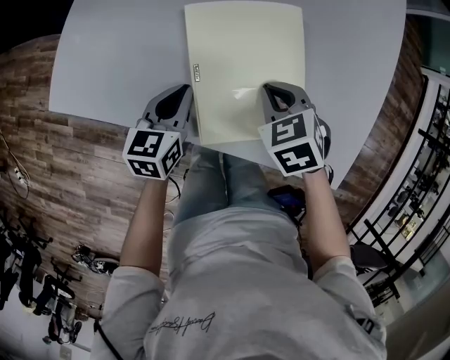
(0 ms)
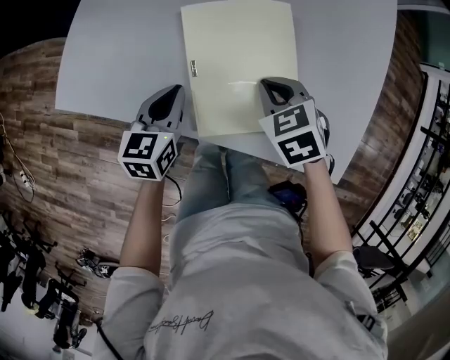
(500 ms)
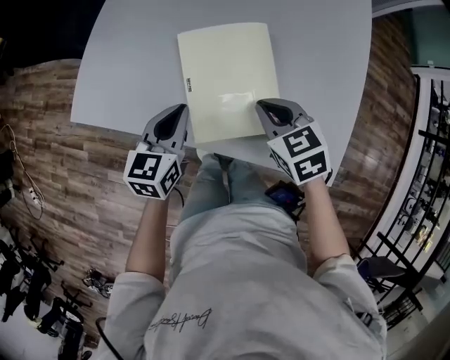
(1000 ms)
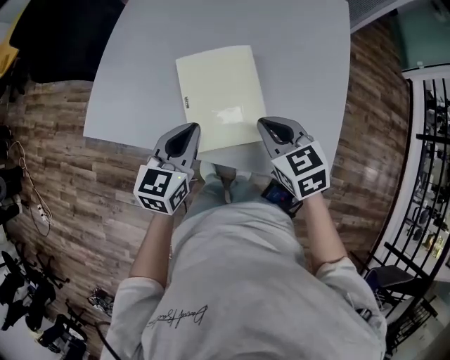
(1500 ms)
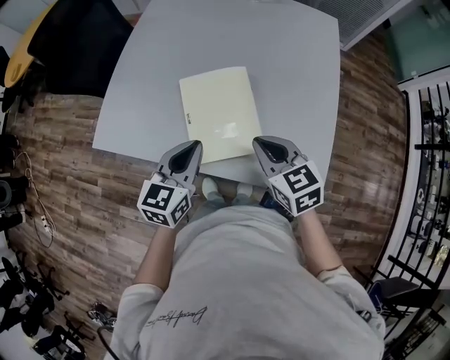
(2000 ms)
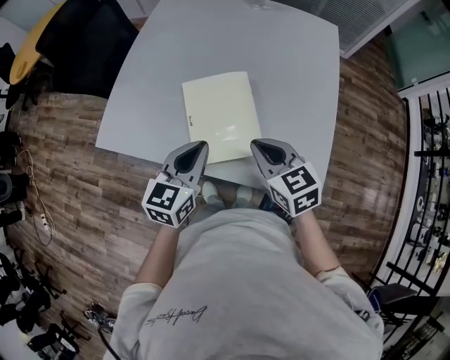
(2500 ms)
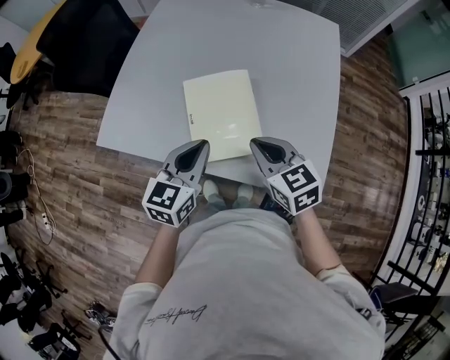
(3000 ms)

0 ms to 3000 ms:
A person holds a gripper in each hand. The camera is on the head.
0 ms to 1500 ms: The two grippers go roughly 15 cm upward. The right gripper rotates roughly 30 degrees.
1500 ms to 3000 ms: The left gripper heads upward, covering about 5 cm, while the right gripper shifts by about 5 cm.

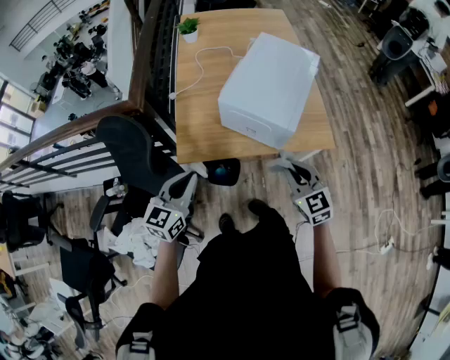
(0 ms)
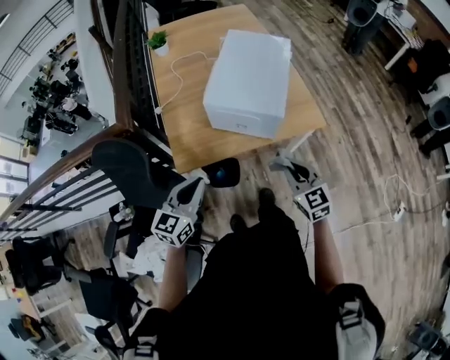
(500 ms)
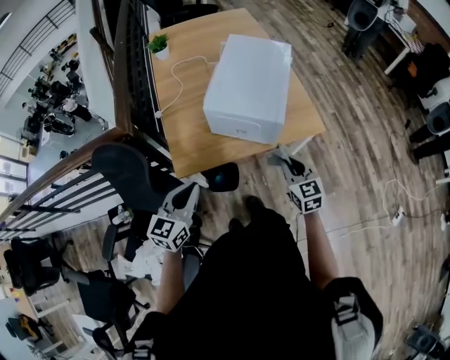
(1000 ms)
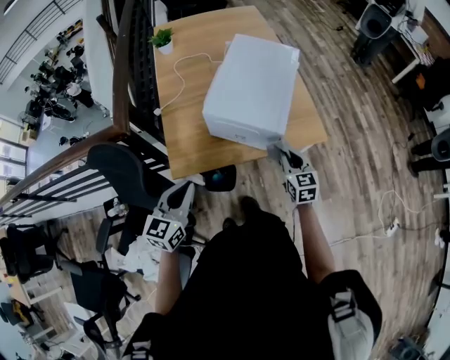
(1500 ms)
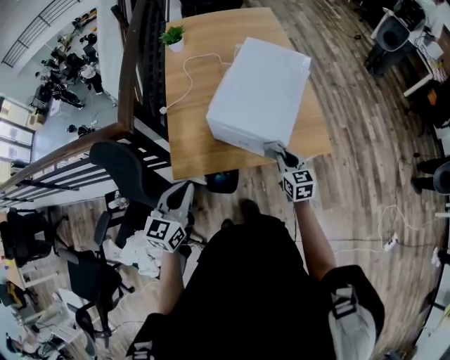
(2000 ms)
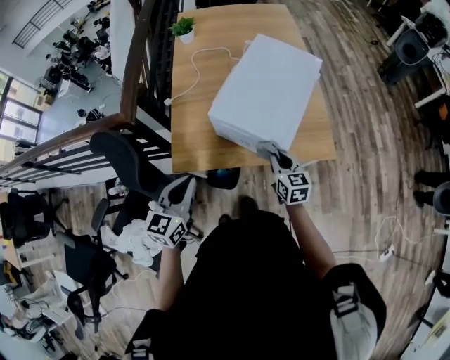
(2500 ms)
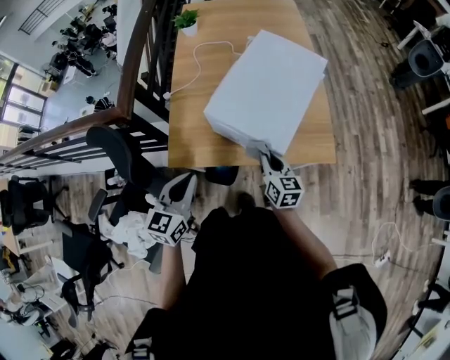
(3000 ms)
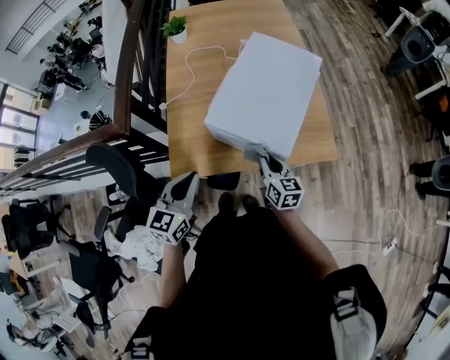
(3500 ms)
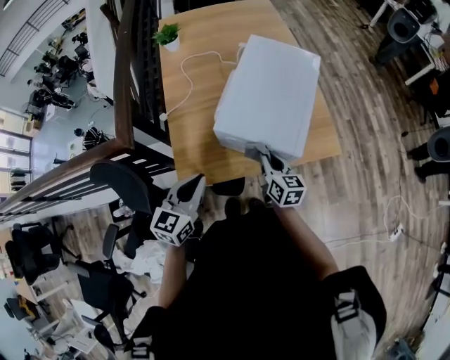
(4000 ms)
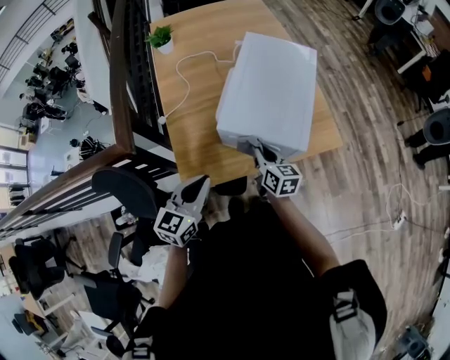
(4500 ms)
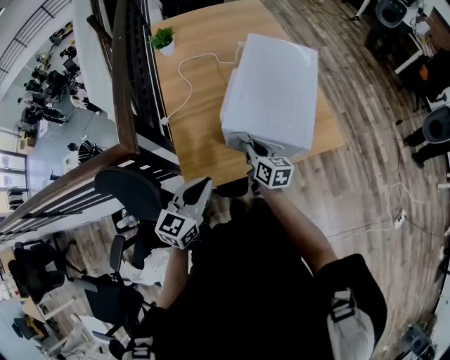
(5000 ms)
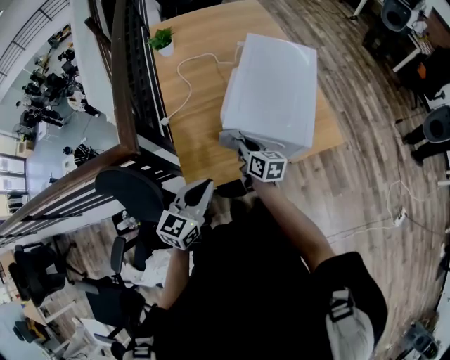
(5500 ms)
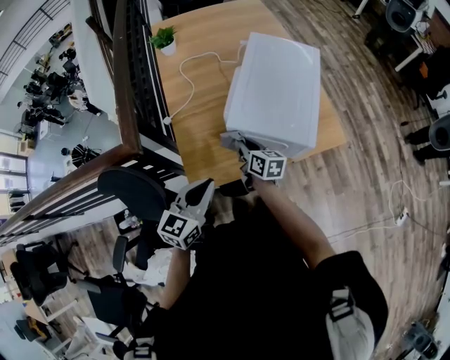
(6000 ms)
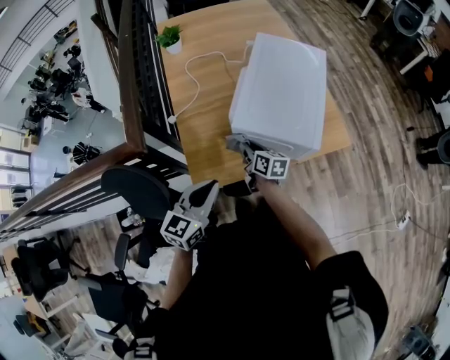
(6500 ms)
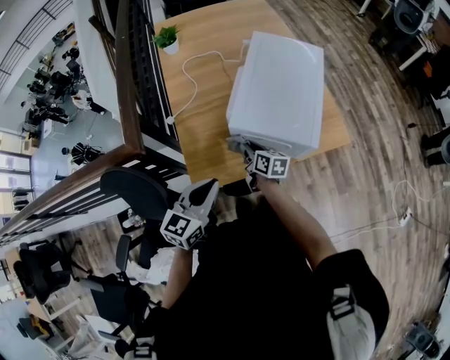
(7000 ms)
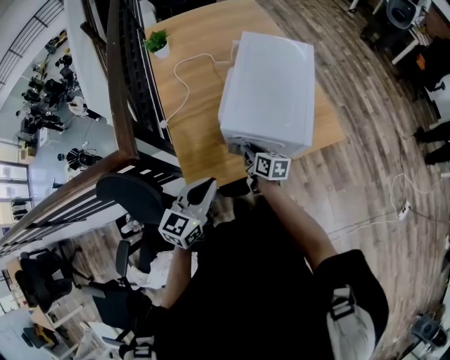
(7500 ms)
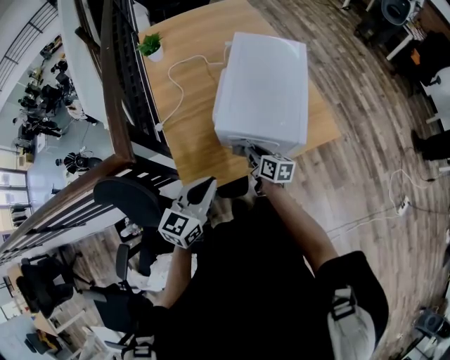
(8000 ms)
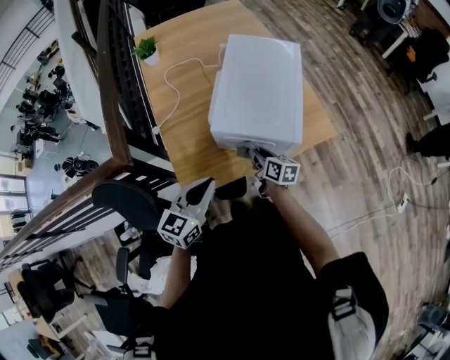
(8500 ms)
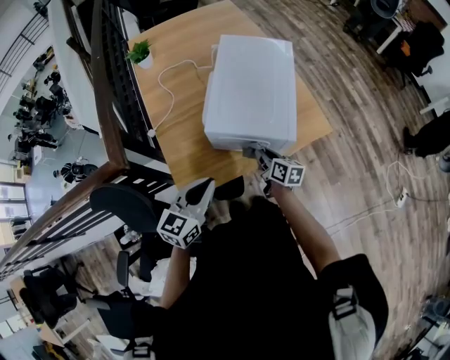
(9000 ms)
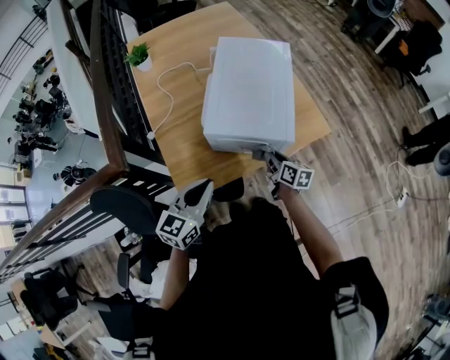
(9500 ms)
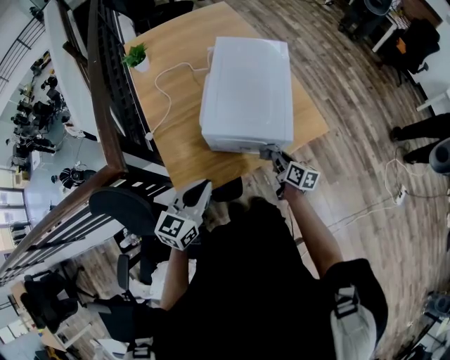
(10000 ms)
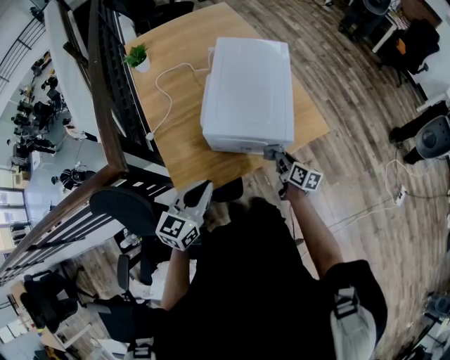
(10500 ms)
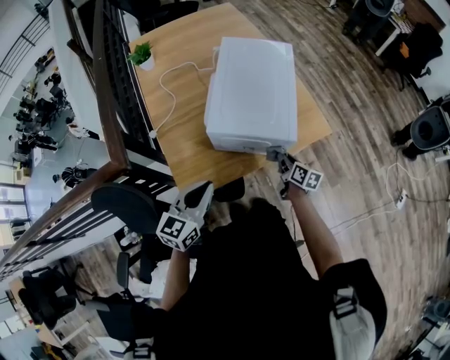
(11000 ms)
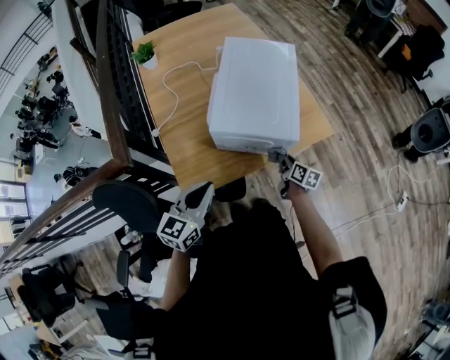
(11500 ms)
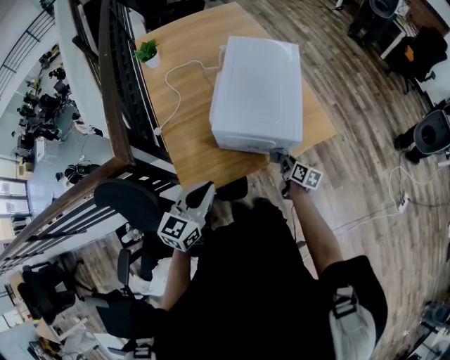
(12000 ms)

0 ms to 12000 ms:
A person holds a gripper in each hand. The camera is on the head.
0 ms to 2000 ms: The right gripper moves forward and downward, some 15 cm.
2000 ms to 4000 ms: The left gripper travels forward by approximately 10 cm. The right gripper shifts about 10 cm to the left, and swivels about 20 degrees.
4000 ms to 6000 ms: The right gripper heads to the left, covering some 15 cm.
6000 ms to 8000 ms: The right gripper travels to the right by roughly 5 cm.
8000 ms to 10000 ms: The right gripper heads to the right, covering roughly 15 cm.
10000 ms to 12000 ms: The right gripper shifts roughly 5 cm downward.

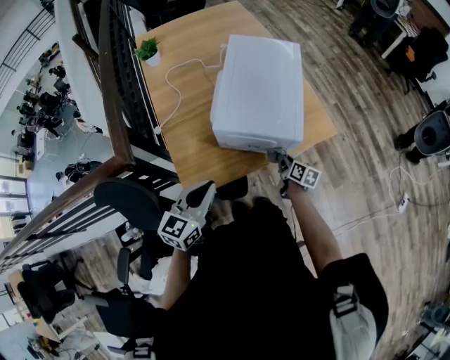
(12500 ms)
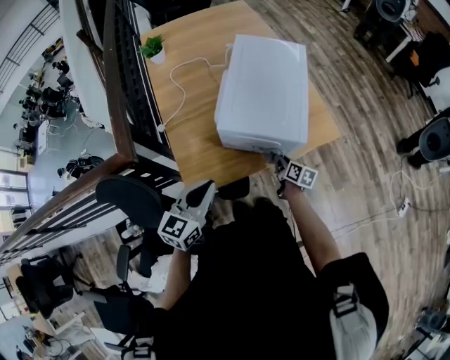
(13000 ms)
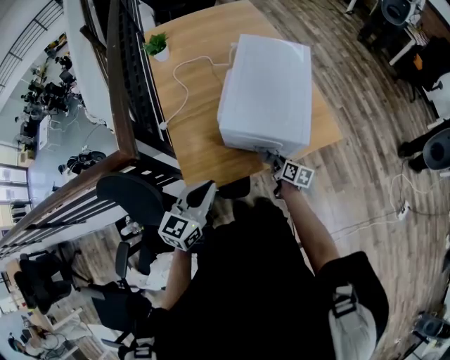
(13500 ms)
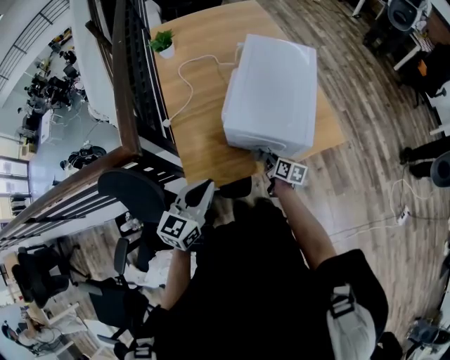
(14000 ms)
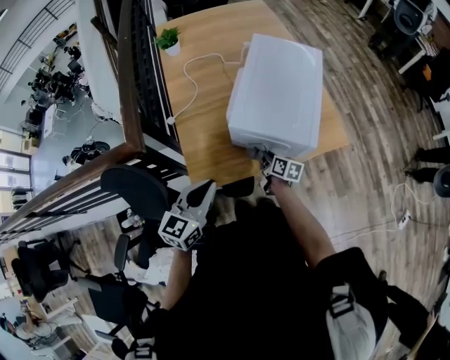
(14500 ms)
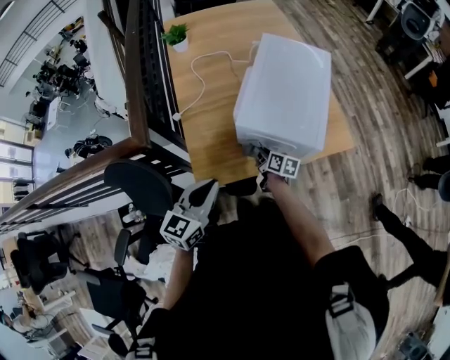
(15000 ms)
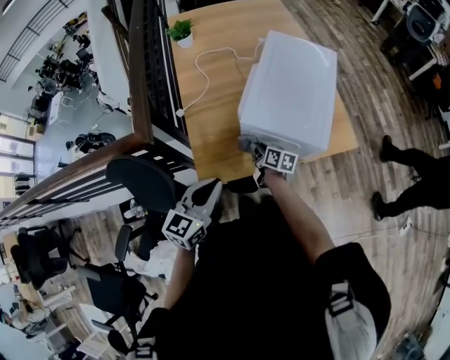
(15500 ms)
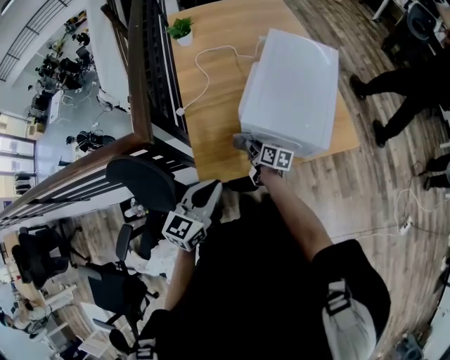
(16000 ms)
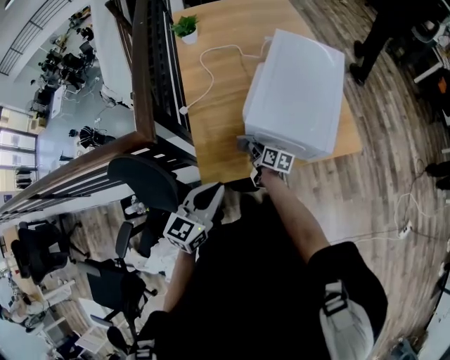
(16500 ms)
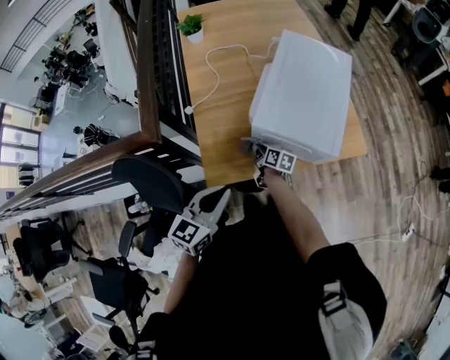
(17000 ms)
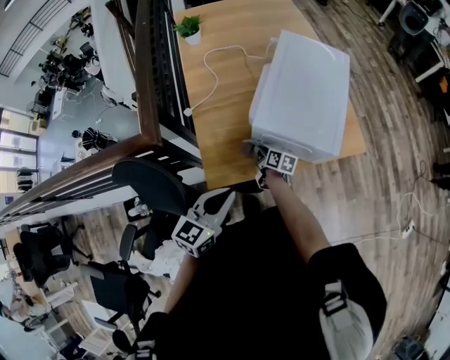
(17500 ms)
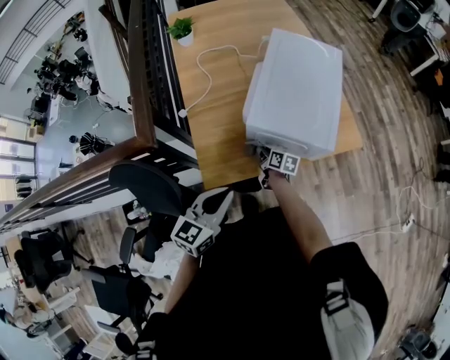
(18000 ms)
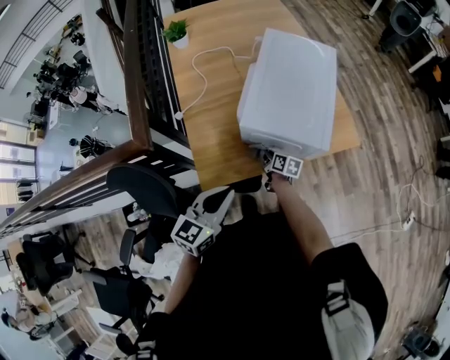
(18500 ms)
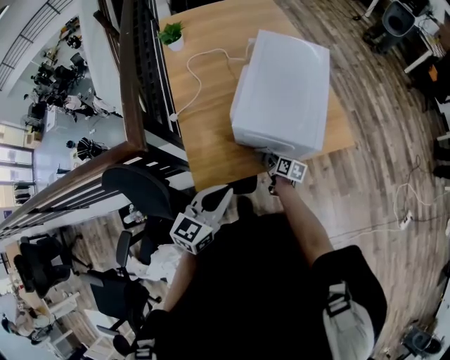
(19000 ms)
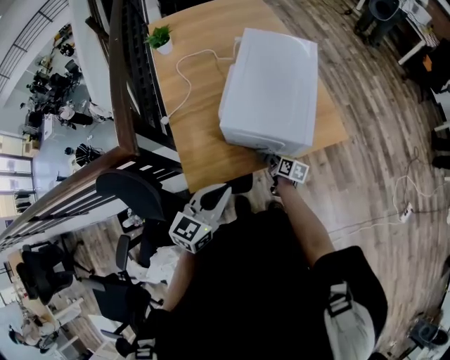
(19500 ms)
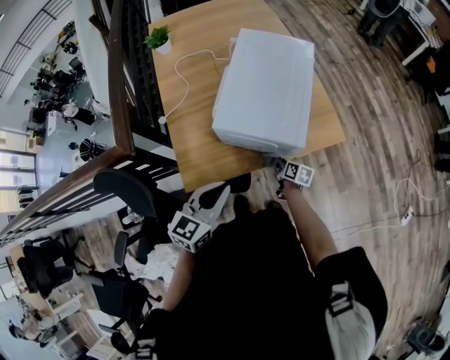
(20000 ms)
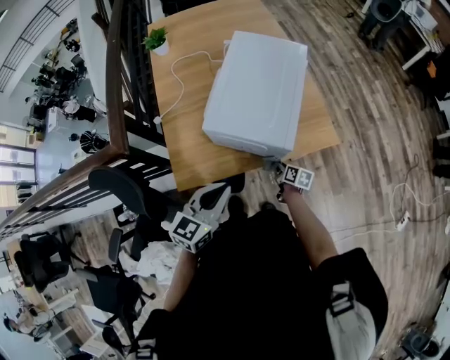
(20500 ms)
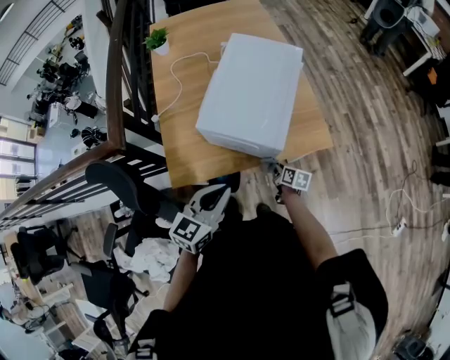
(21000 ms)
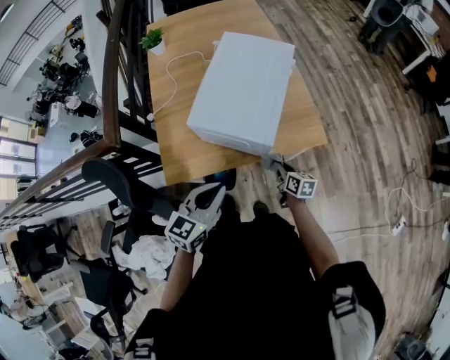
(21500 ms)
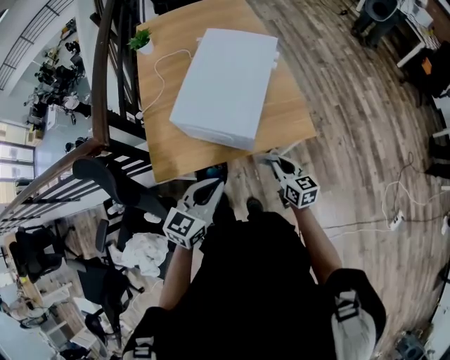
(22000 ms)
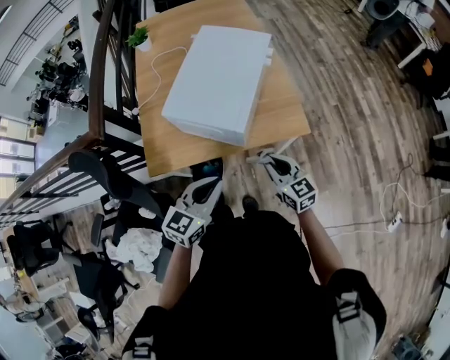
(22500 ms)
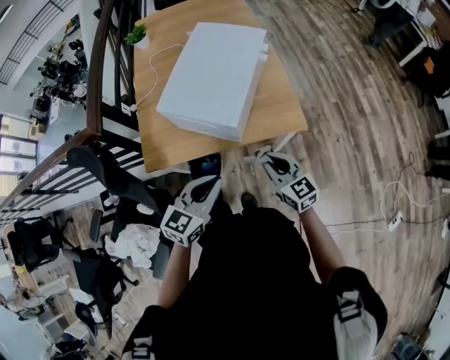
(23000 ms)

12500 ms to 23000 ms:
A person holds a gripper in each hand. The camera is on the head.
12500 ms to 14500 ms: The right gripper shifts roughly 15 cm to the left.
14500 ms to 16500 ms: The right gripper travels to the left by about 10 cm.
16500 ms to 19000 ms: The left gripper travels to the right by about 5 cm, while the right gripper travels to the right by approximately 10 cm.
19000 ms to 21000 ms: Both grippers move to the right, approximately 15 cm.
21000 ms to 23000 ms: The right gripper shifts about 20 cm upward, and rotates around the line of its fingers by some 50 degrees, counterclockwise from behind. Meanwhile the left gripper is displaced to the right by about 15 cm.

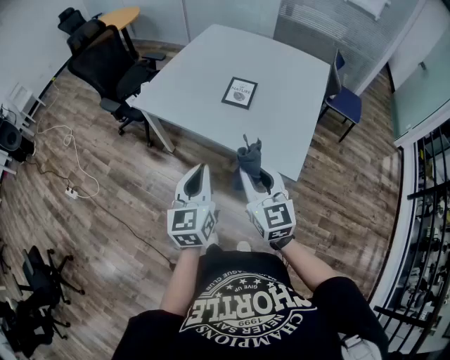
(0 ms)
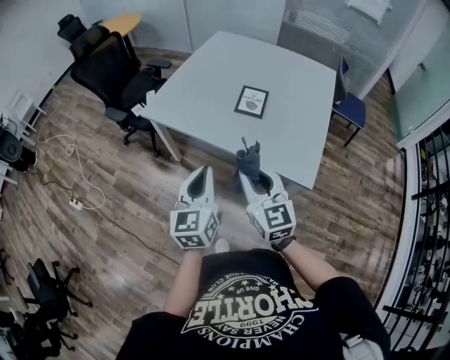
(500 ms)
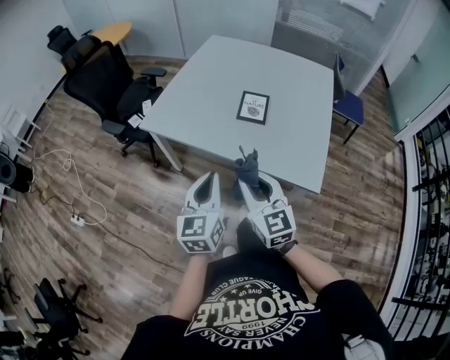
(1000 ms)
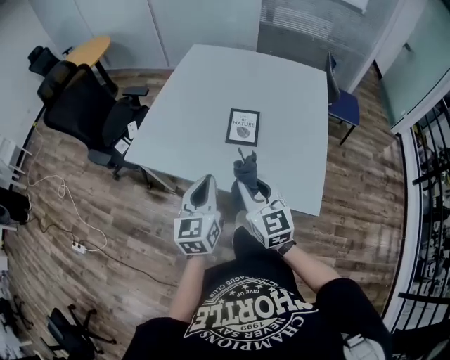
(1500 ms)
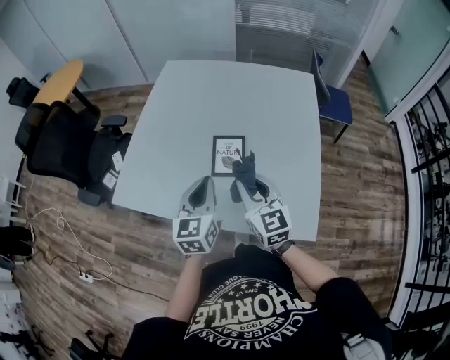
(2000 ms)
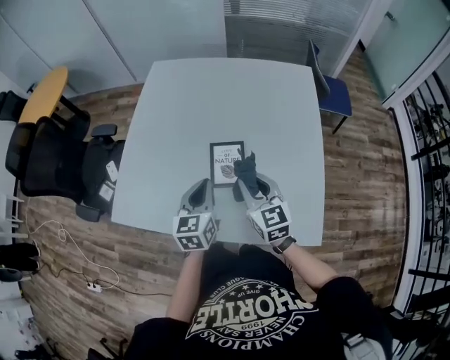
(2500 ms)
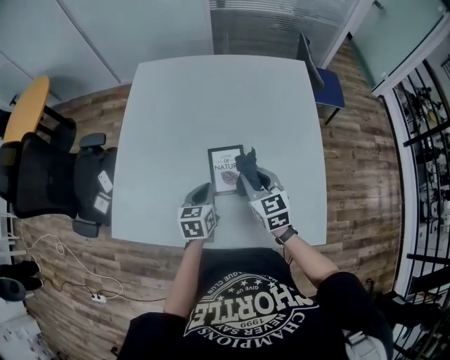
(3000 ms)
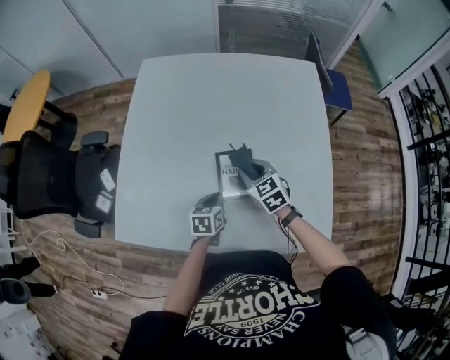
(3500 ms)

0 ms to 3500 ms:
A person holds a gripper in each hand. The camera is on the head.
0 ms to 2000 ms: Both grippers move forward, some 40 cm.
2000 ms to 3500 ms: The right gripper is displaced forward and downward by about 25 cm, and swivels approximately 30 degrees; the left gripper moves downward and forward, some 30 cm, and tilts its fingers some 30 degrees downward.
